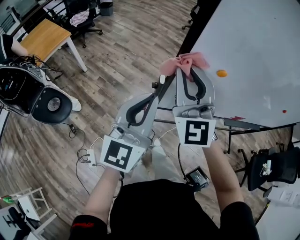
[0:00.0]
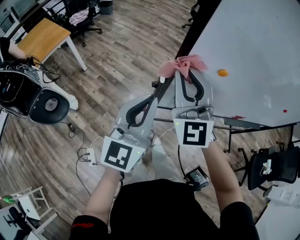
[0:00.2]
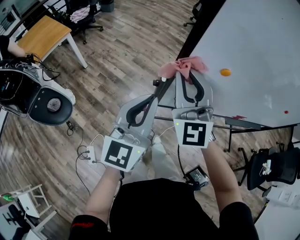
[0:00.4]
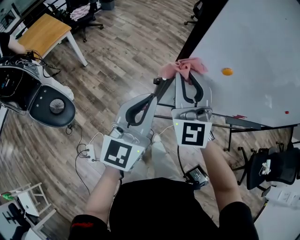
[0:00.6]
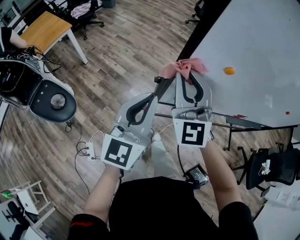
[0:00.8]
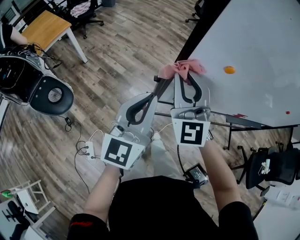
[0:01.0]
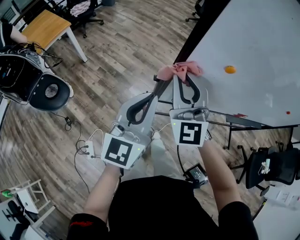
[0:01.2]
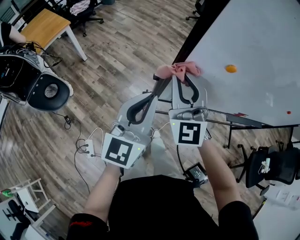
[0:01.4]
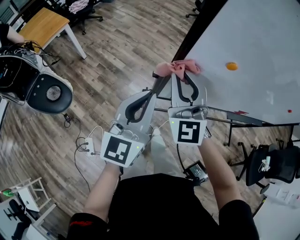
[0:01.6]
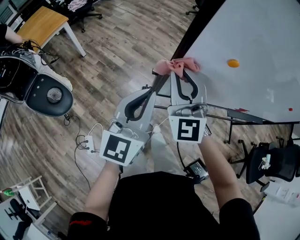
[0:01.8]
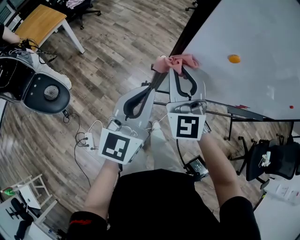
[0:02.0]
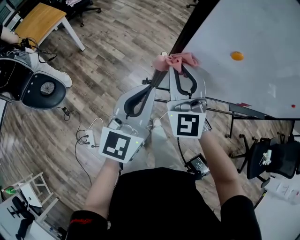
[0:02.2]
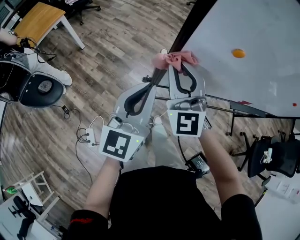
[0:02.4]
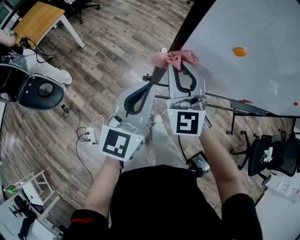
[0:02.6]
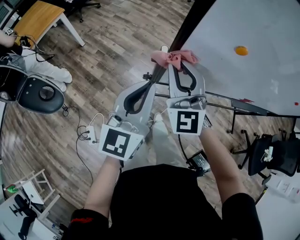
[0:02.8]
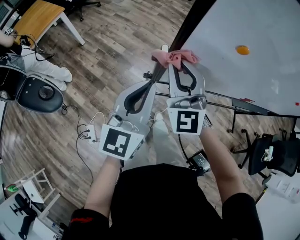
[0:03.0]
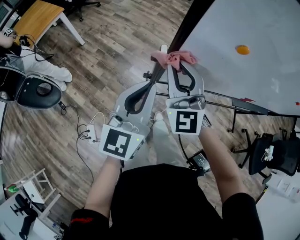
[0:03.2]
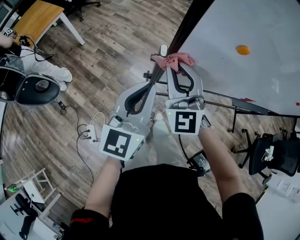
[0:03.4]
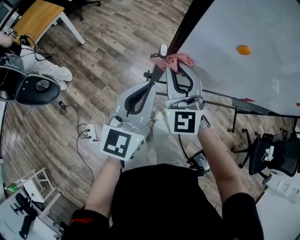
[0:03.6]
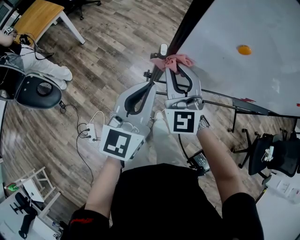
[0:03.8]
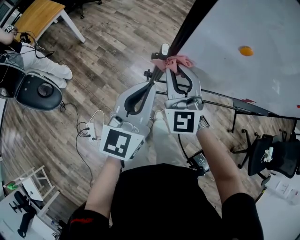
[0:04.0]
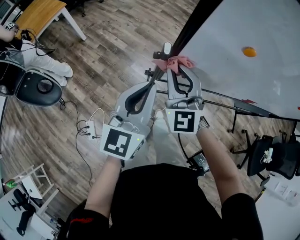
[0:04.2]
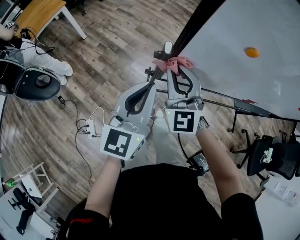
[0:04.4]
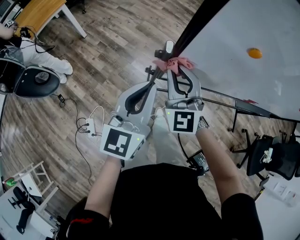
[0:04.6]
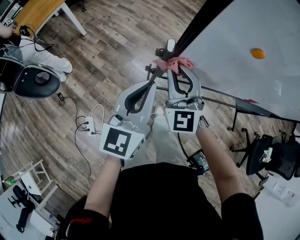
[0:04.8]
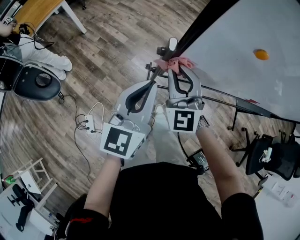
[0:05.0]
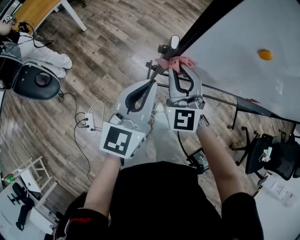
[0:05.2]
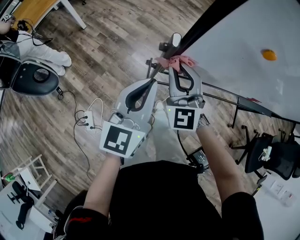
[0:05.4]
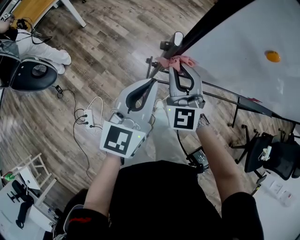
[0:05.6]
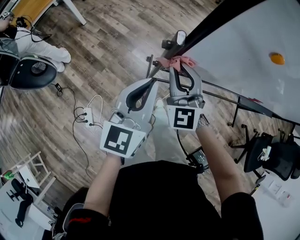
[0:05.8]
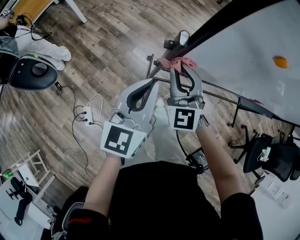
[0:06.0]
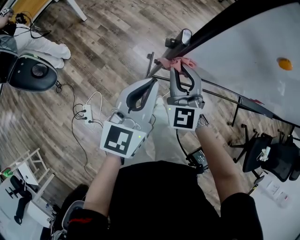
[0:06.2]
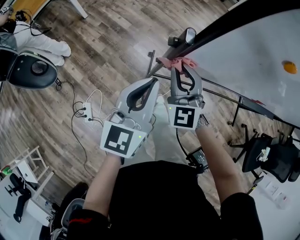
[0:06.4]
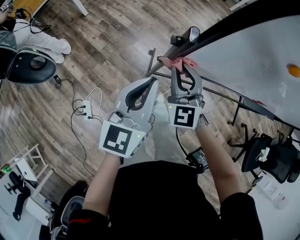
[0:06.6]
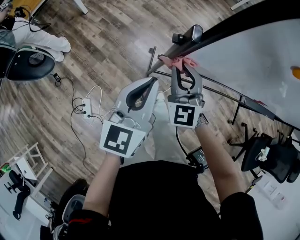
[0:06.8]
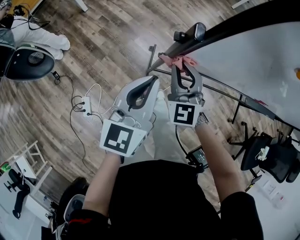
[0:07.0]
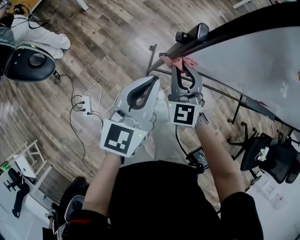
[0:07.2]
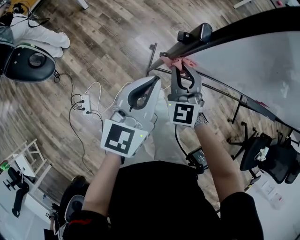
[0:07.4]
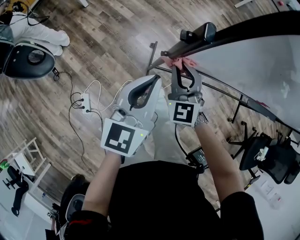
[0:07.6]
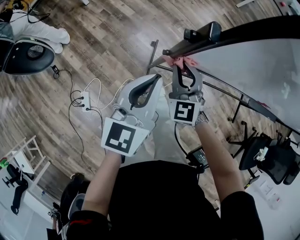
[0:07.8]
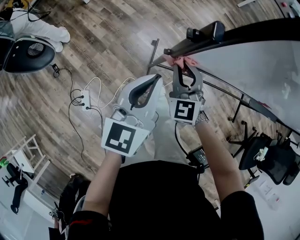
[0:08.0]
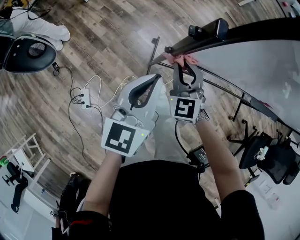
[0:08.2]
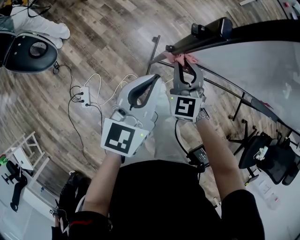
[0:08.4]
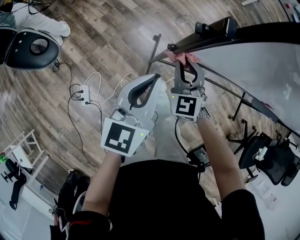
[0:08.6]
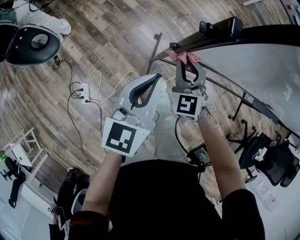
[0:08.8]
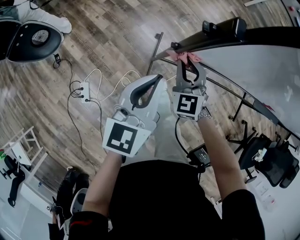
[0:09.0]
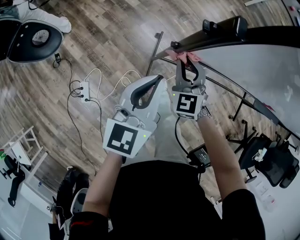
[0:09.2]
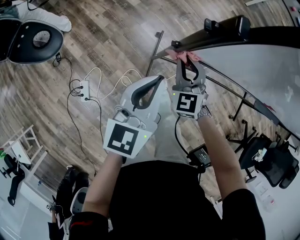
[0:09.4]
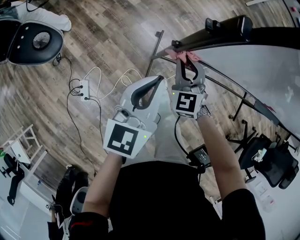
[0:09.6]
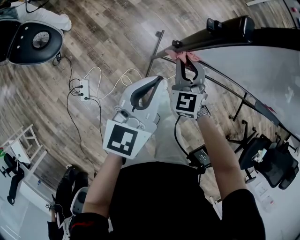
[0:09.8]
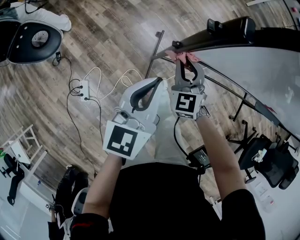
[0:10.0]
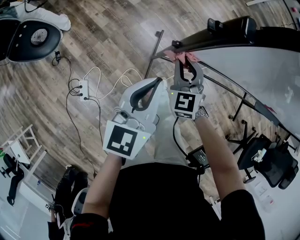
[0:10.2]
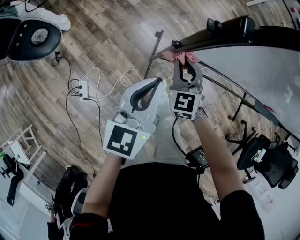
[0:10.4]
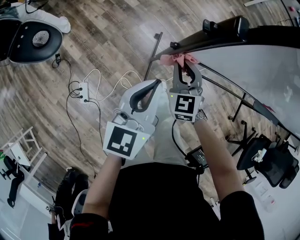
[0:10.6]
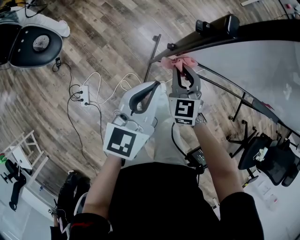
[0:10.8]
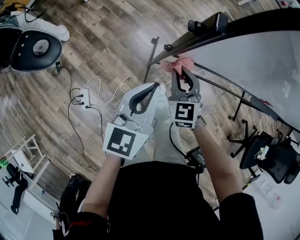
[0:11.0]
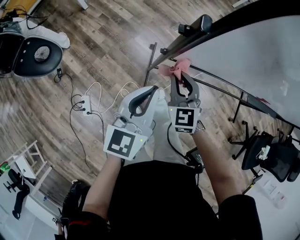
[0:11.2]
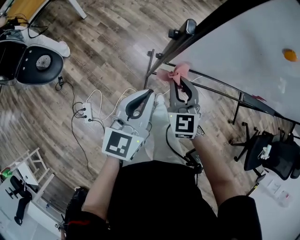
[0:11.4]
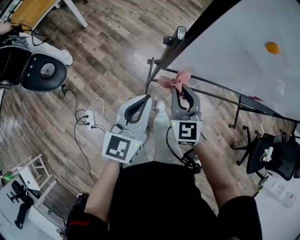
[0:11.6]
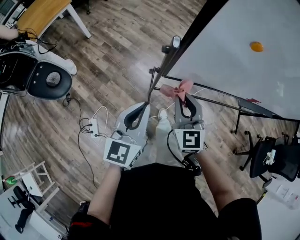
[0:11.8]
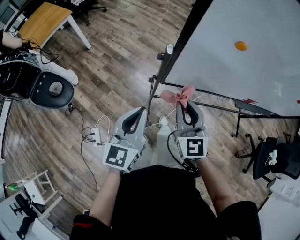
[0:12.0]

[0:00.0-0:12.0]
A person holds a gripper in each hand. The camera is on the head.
0:00.0 to 0:01.6: The two grippers go approximately 5 cm downward.
0:01.6 to 0:03.0: The right gripper heads downward, covering approximately 5 cm.
0:03.0 to 0:04.4: The right gripper shifts roughly 5 cm downward.
0:04.4 to 0:06.0: The grippers both shift downward by roughly 5 cm.
0:06.0 to 0:07.6: The left gripper is displaced downward by roughly 5 cm. The right gripper heads downward, covering approximately 10 cm.
0:07.6 to 0:09.0: The right gripper moves downward, approximately 5 cm.
0:09.0 to 0:10.4: The grippers make only small movements.
0:10.4 to 0:12.0: The left gripper moves upward and backward, some 15 cm. The right gripper moves upward and backward, about 25 cm, and rotates about 20 degrees.

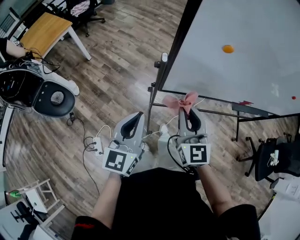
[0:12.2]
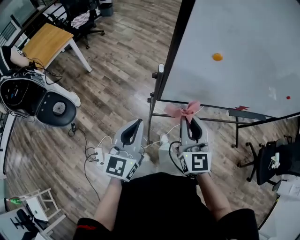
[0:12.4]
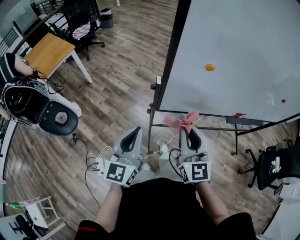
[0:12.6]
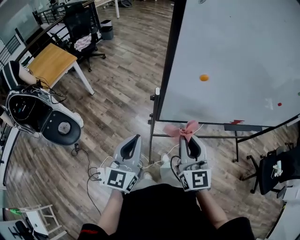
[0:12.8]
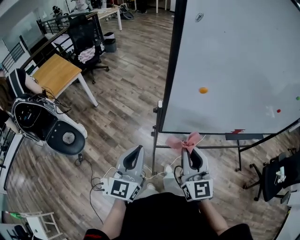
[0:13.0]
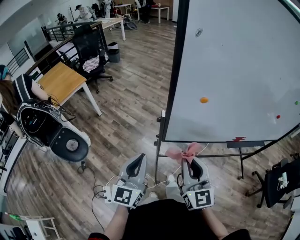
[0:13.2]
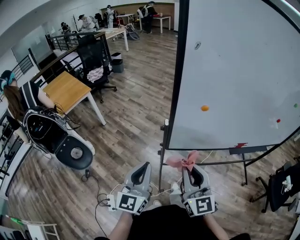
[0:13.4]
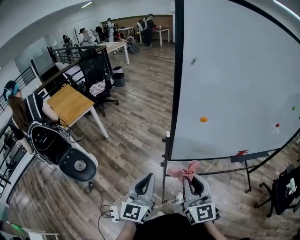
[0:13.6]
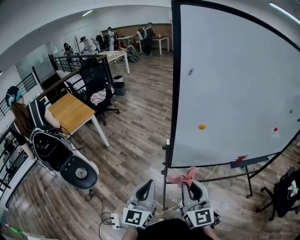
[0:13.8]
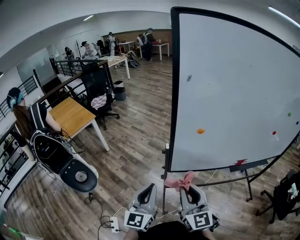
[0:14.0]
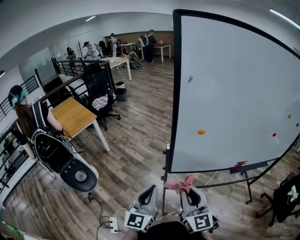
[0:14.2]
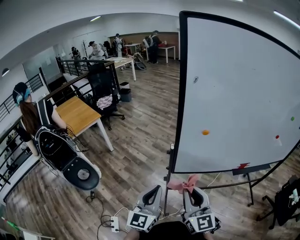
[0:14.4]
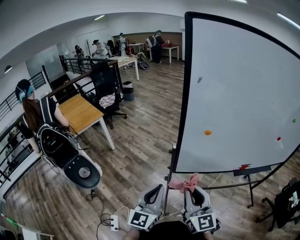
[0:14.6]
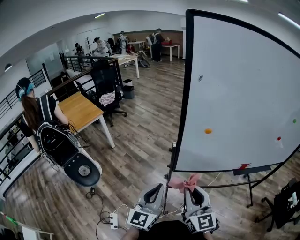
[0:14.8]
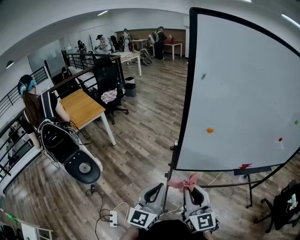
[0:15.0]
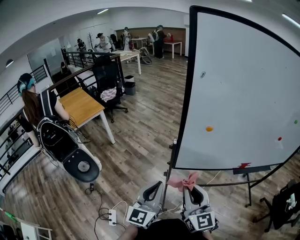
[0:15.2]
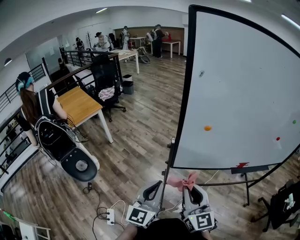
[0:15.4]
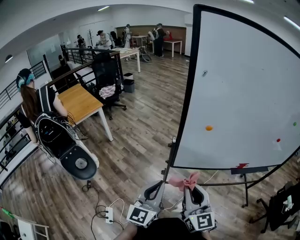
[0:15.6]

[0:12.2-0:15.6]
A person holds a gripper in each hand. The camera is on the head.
0:12.2 to 0:13.8: The grippers both shift upward and backward by some 15 cm.
0:13.8 to 0:15.6: The grippers stay close to where they were, moving slightly.

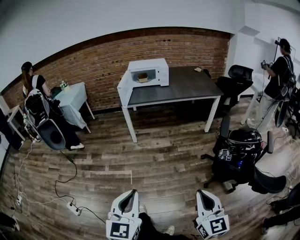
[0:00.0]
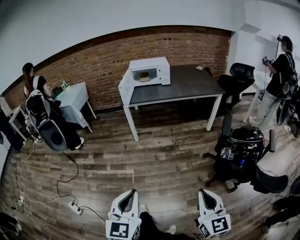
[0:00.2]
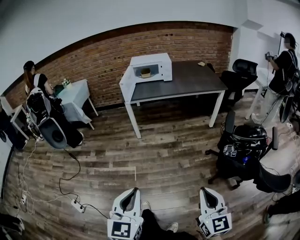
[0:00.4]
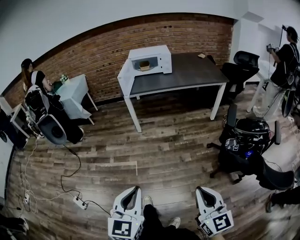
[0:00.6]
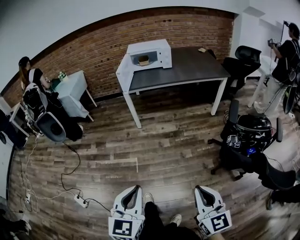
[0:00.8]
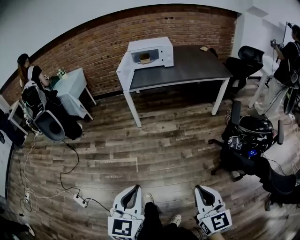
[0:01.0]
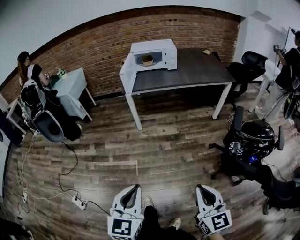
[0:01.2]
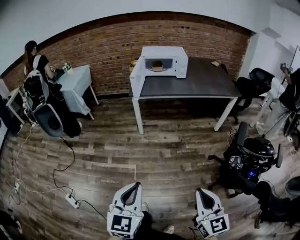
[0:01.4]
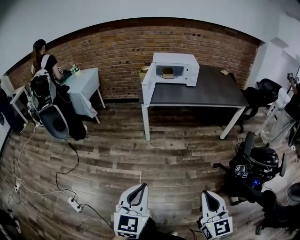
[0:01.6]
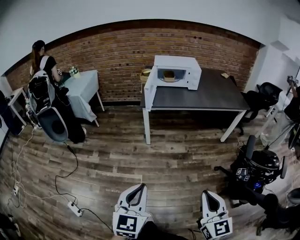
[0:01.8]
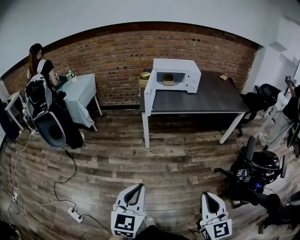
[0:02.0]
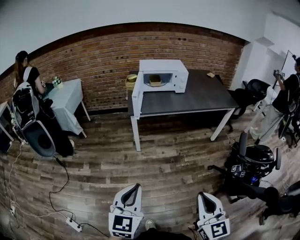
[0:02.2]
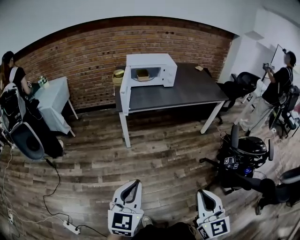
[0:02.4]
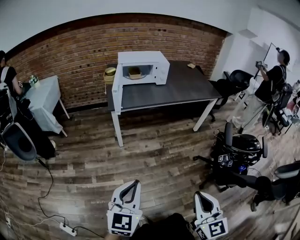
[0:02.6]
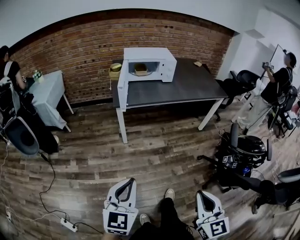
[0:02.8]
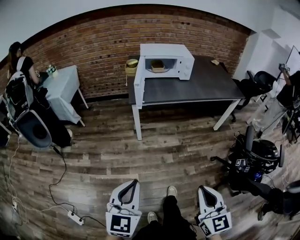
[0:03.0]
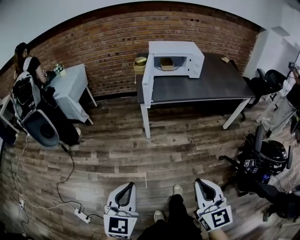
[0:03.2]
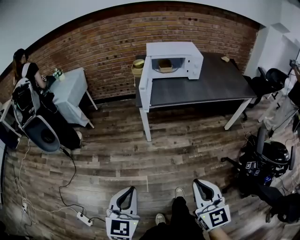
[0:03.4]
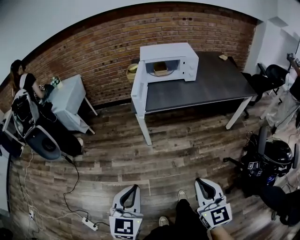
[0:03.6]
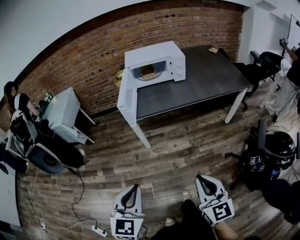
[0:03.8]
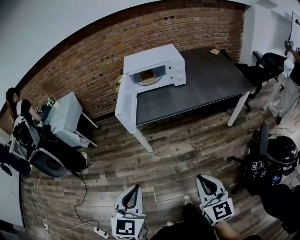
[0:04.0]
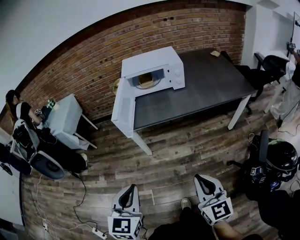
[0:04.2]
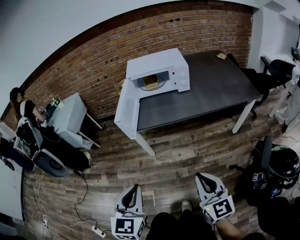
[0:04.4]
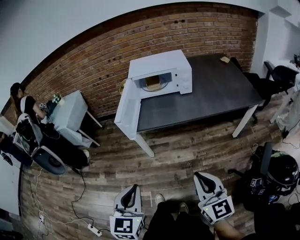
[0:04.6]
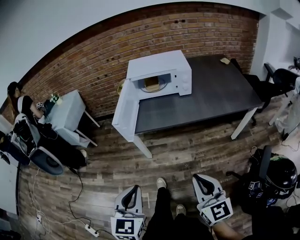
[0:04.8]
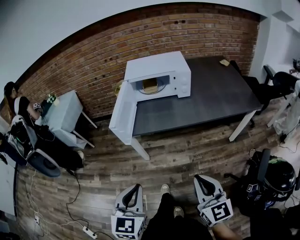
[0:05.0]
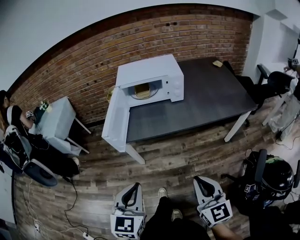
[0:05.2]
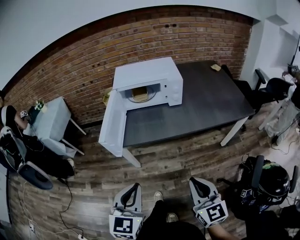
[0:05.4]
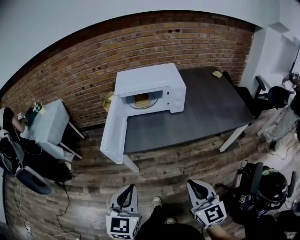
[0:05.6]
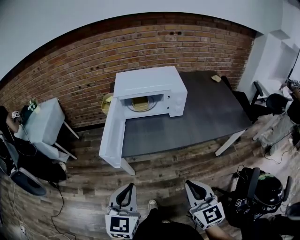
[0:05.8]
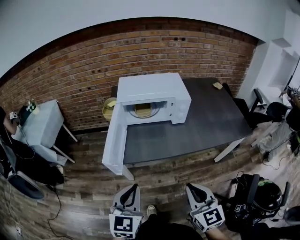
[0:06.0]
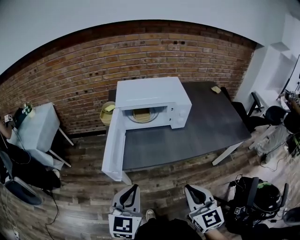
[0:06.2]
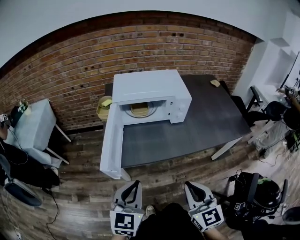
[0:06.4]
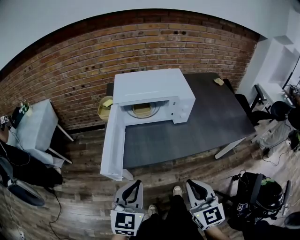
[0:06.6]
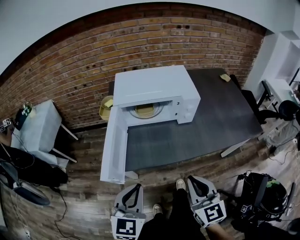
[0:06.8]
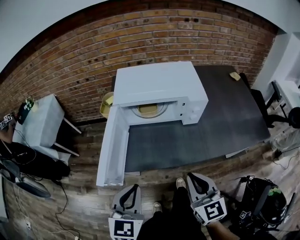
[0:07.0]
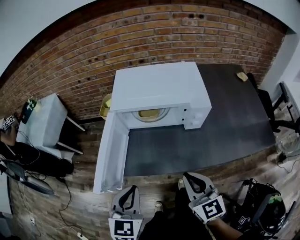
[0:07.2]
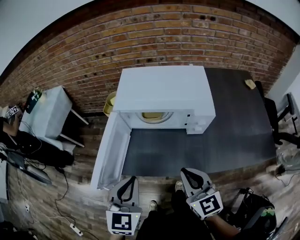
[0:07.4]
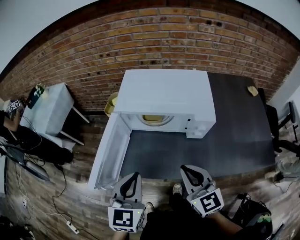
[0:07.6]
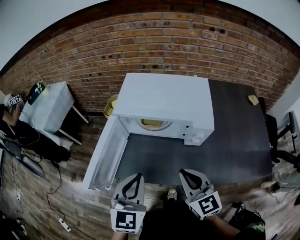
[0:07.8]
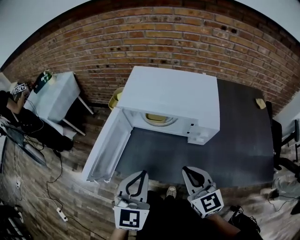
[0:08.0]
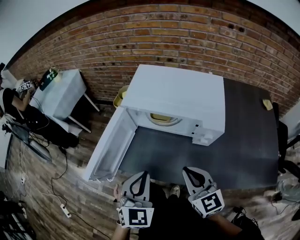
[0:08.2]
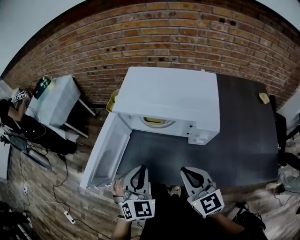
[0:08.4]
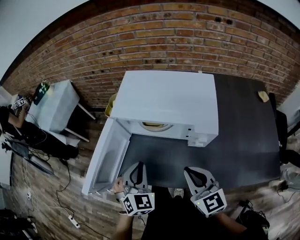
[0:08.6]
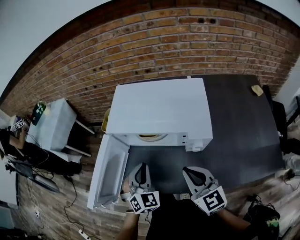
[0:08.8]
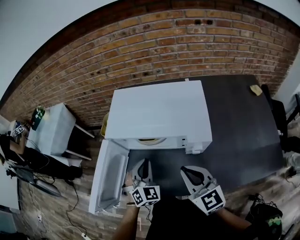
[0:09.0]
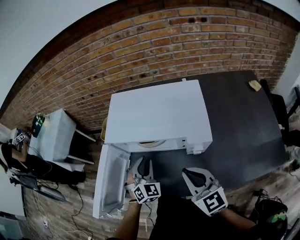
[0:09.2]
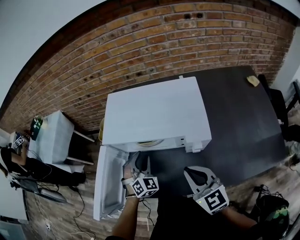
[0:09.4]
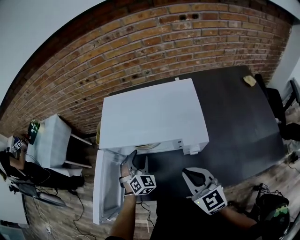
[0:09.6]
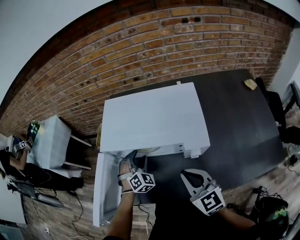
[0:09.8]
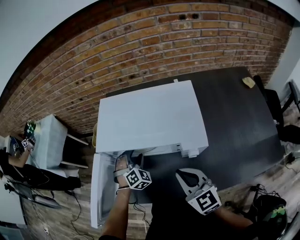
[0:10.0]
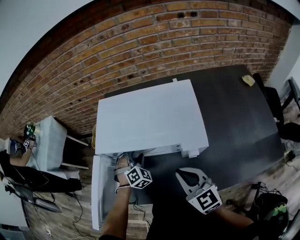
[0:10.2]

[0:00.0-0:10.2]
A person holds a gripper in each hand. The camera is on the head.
0:00.0 to 0:01.4: Both grippers move forward and to the left, some 15 cm.
0:01.4 to 0:03.0: The grippers both shift forward and to the left by roughly 20 cm.
0:03.0 to 0:04.4: The two grippers go some 25 cm forward and to the right.
0:04.4 to 0:05.8: Both grippers travel together forward, approximately 20 cm.
0:05.8 to 0:07.2: The grippers both shift forward by about 20 cm.
0:07.2 to 0:08.8: The left gripper is displaced forward, to the right and downward by some 20 cm, and changes its angle by about 30 degrees, while the right gripper is displaced forward and to the right by approximately 15 cm.
0:08.8 to 0:10.2: The left gripper shifts roughly 20 cm forward and downward, turns by about 30 degrees, and opens. The right gripper ends up about 5 cm from where it was.
